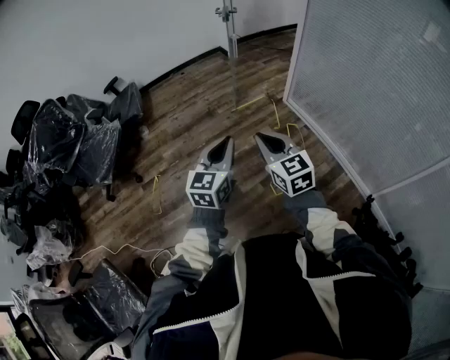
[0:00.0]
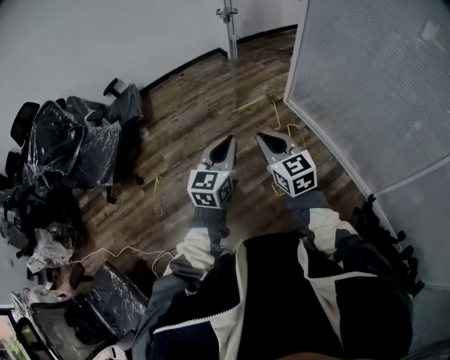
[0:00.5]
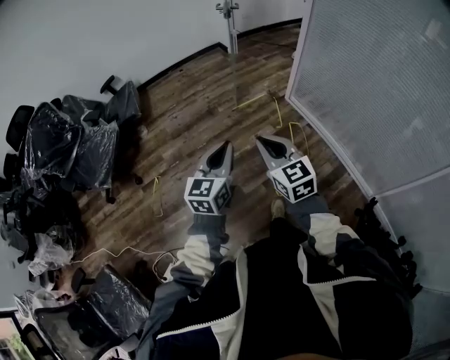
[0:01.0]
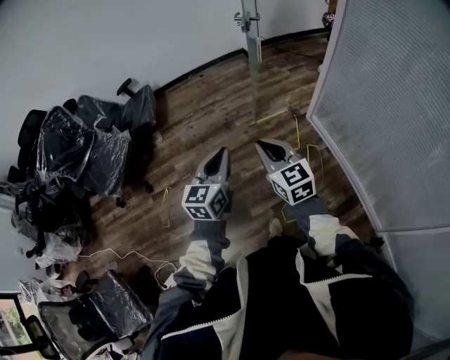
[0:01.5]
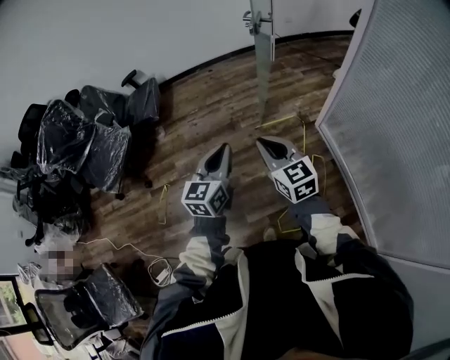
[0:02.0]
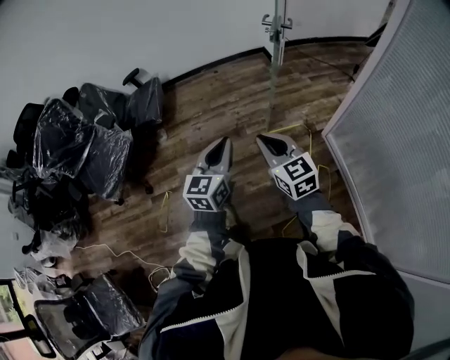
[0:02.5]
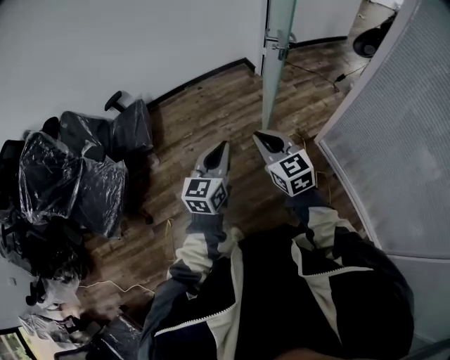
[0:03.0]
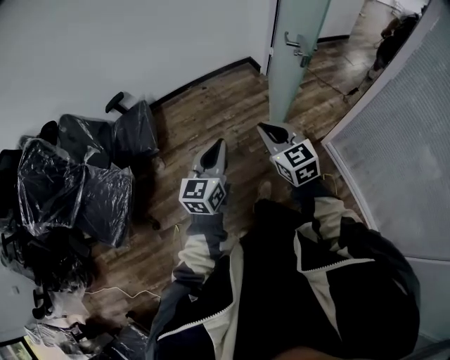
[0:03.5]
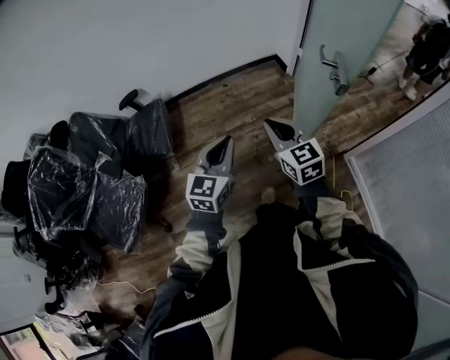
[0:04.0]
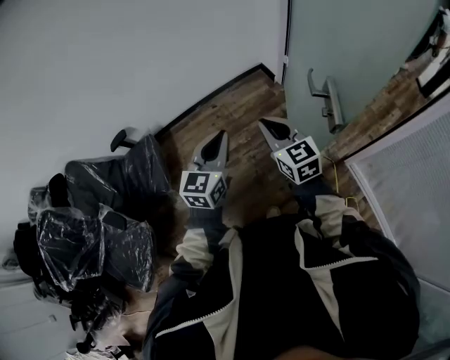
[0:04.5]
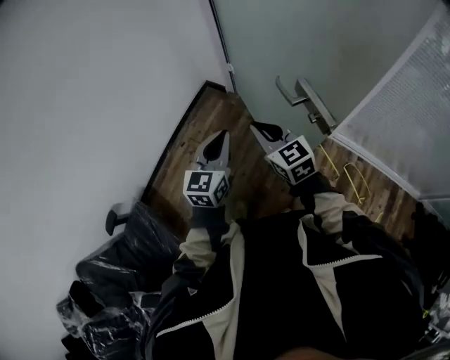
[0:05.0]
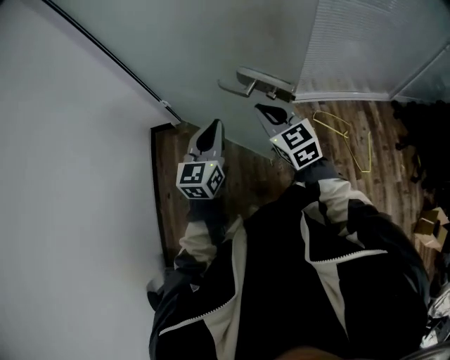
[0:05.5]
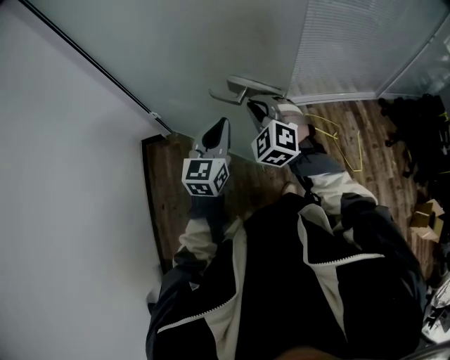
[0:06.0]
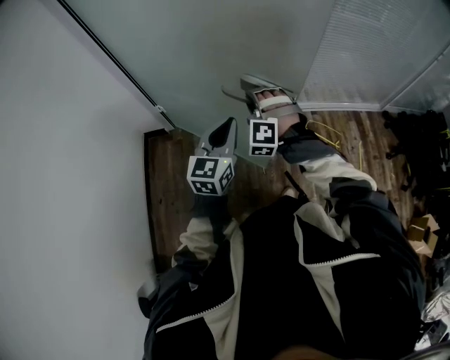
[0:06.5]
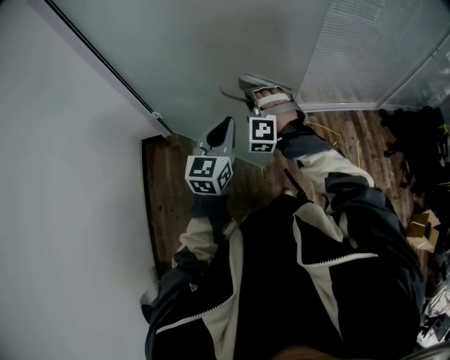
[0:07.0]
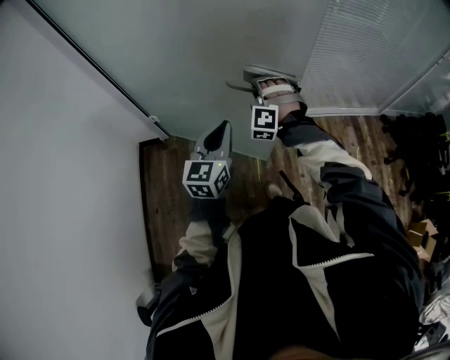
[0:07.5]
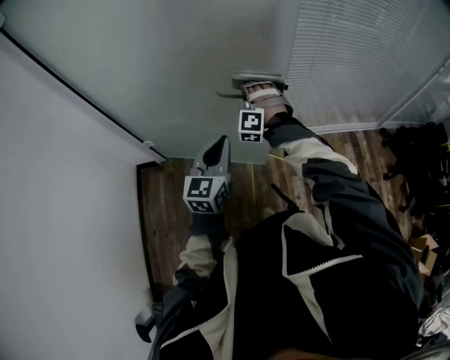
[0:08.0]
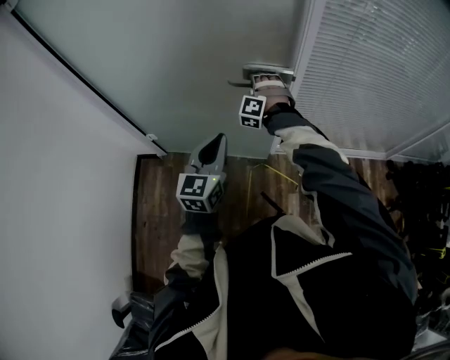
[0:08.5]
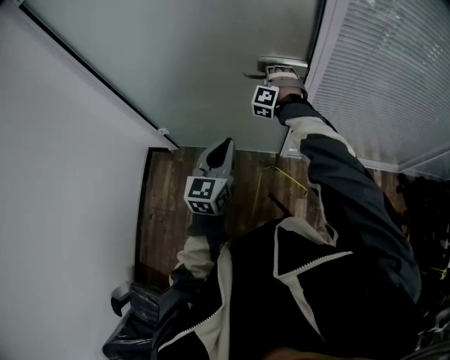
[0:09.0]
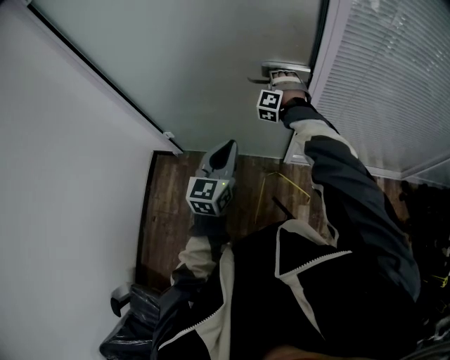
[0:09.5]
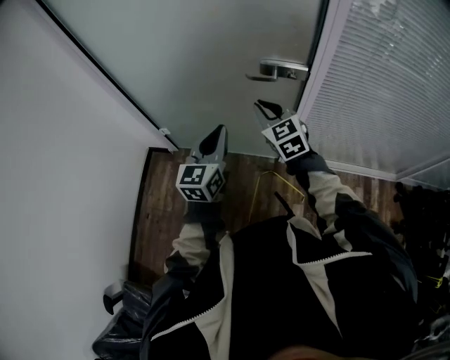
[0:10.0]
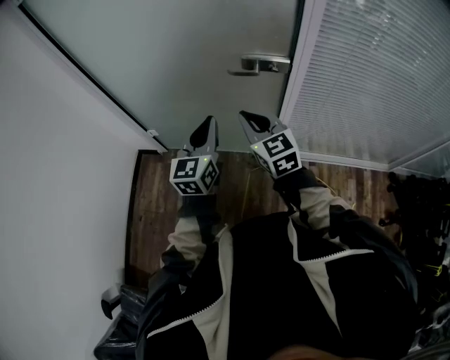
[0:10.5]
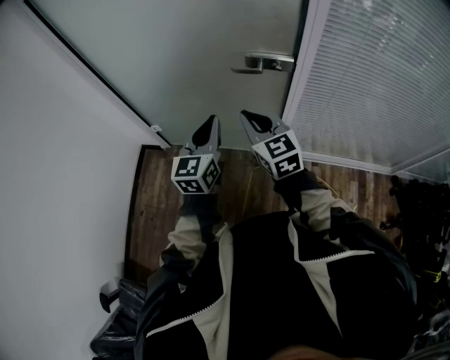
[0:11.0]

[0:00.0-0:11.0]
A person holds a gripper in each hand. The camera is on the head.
0:00.0 to 0:02.0: Both grippers move forward, about 30 cm.
0:02.0 to 0:03.5: Both grippers travel together forward and to the left, roughly 35 cm.
0:03.5 to 0:05.5: The left gripper changes place by approximately 50 cm, and rotates roughly 60 degrees. Meanwhile the right gripper ends up some 40 cm from where it was, and rotates about 60 degrees.
0:05.5 to 0:07.5: The right gripper is displaced forward by approximately 20 cm, rolls counterclockwise, seen from behind, by some 70 degrees, and opens its fingers. Meanwhile the left gripper goes some 10 cm forward and to the right.
0:07.5 to 0:09.0: The left gripper travels forward by roughly 15 cm, while the right gripper goes roughly 30 cm forward.
0:09.0 to 0:11.0: The right gripper ends up some 25 cm from where it was, rotates around the line of its fingers by roughly 70 degrees, clockwise from behind, and closes up.

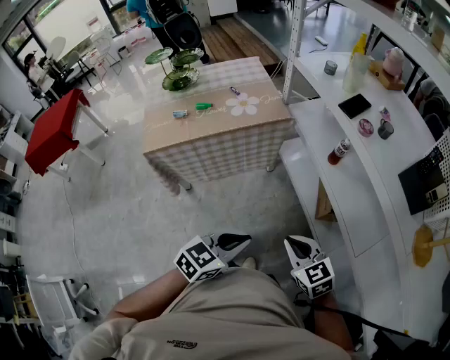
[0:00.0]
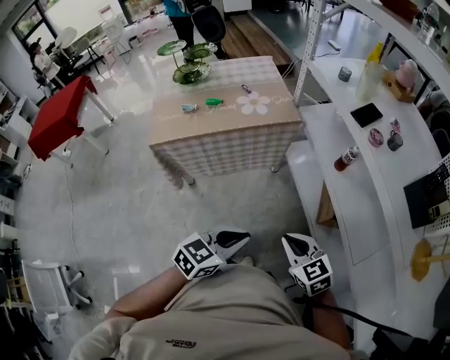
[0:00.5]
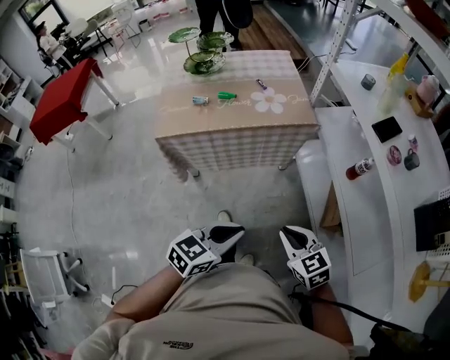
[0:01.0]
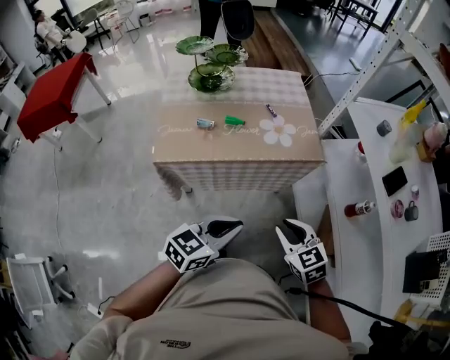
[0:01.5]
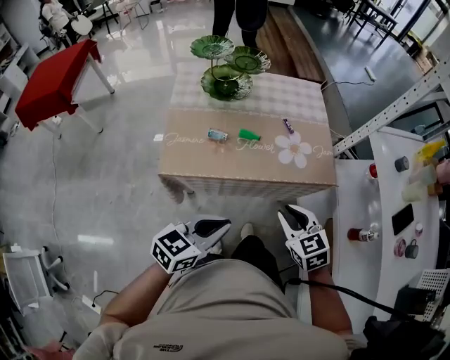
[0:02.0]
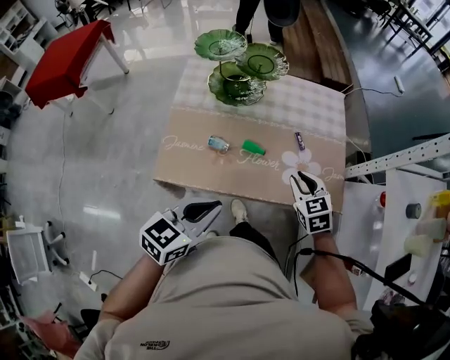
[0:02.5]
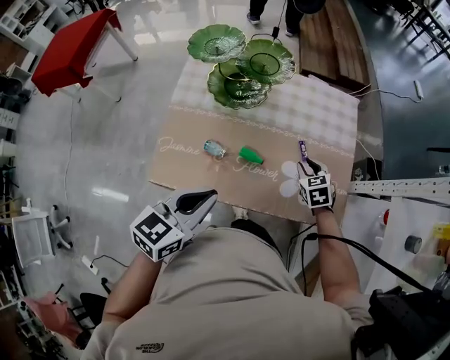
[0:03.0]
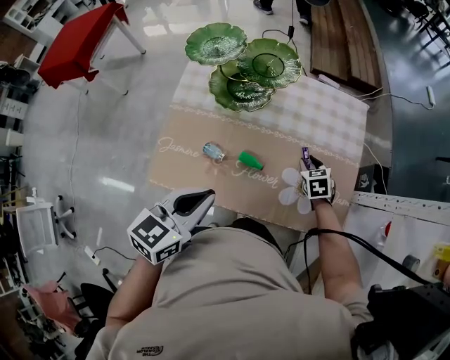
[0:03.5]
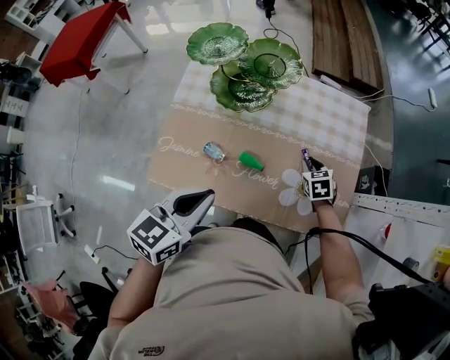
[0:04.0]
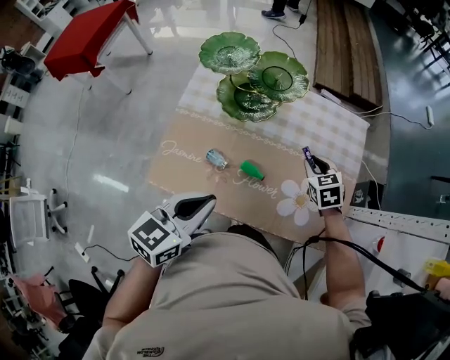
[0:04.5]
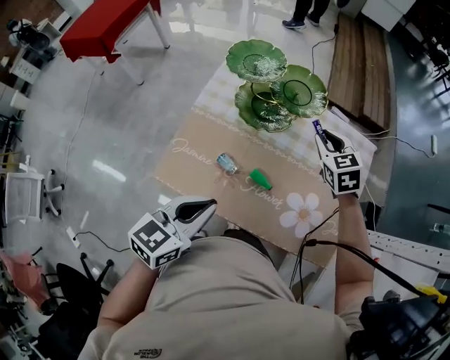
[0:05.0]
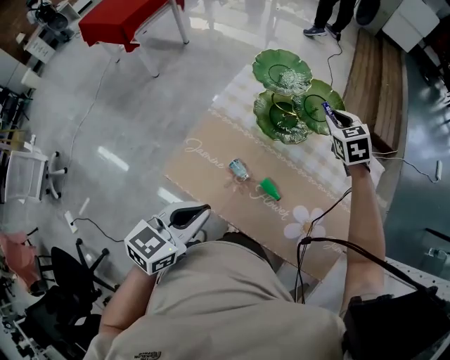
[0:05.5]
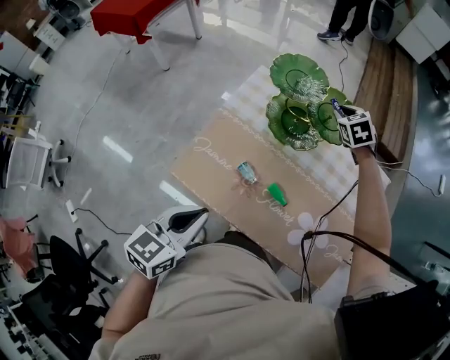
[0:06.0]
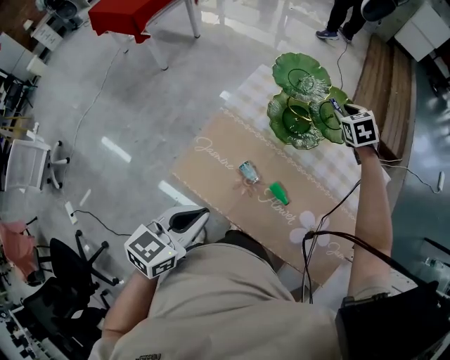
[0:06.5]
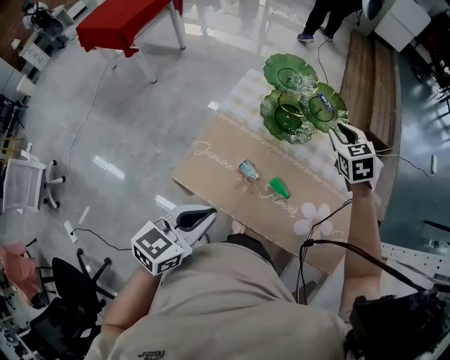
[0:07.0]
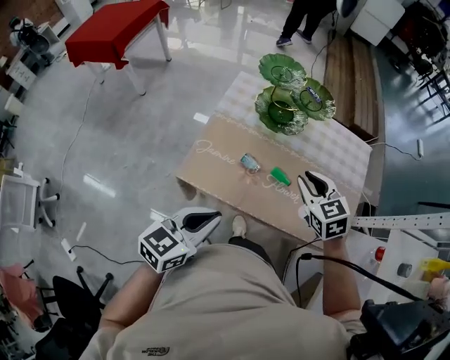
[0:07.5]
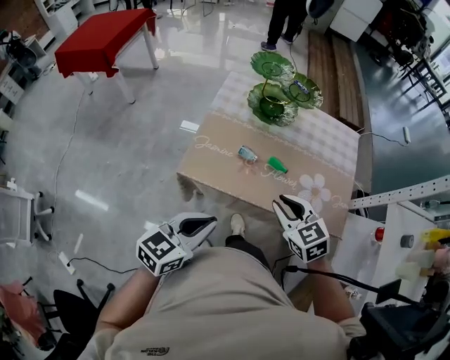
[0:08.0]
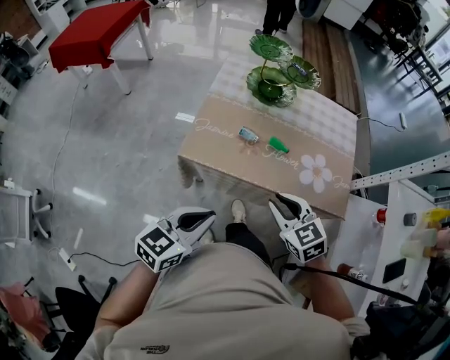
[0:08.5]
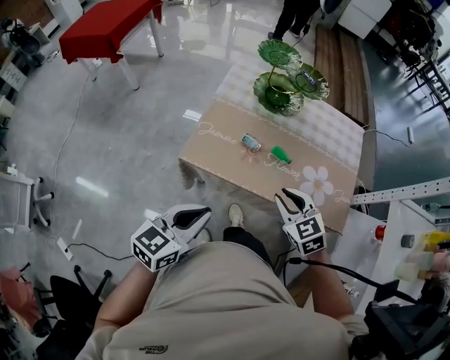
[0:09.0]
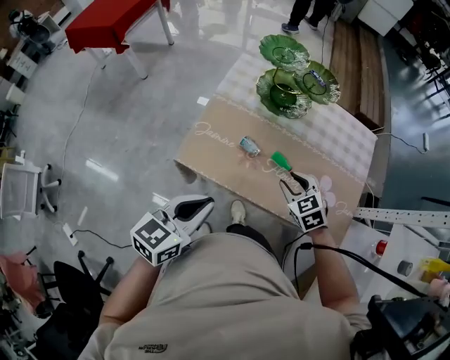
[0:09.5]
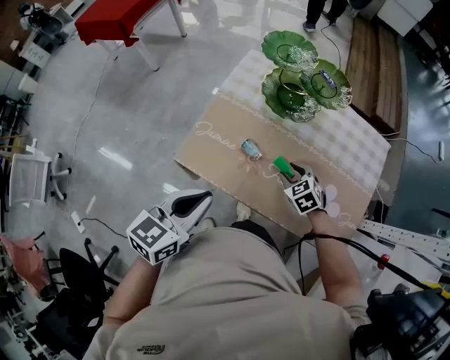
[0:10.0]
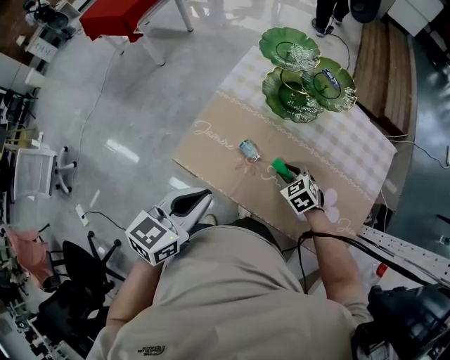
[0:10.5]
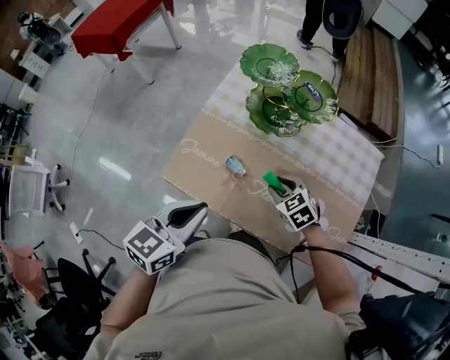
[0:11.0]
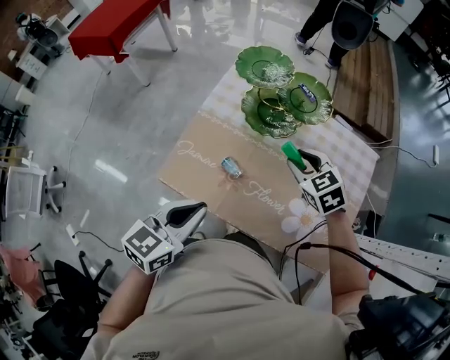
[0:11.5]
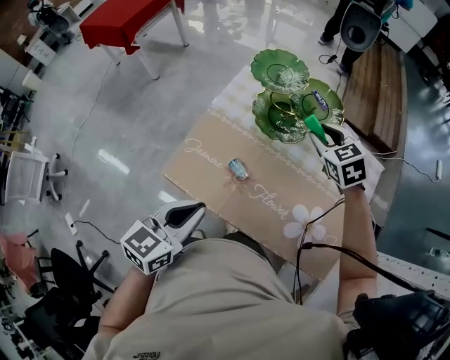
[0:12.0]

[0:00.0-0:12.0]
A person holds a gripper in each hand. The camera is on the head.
0:00.0 to 0:02.0: The right gripper is displaced forward and to the left by approximately 40 cm; the left gripper shifts about 40 cm to the left and forward, and swivels about 20 degrees.
0:02.0 to 0:04.0: The right gripper travels forward and downward by about 50 cm. Meanwhile the left gripper travels forward by about 25 cm, and turns by about 30 degrees.
0:04.0 to 0:06.0: The left gripper travels to the left by approximately 10 cm. Meanwhile the right gripper shifts some 40 cm forward, to the left and upward, and rotates approximately 30 degrees.
0:06.0 to 0:08.0: The right gripper heads backward, covering about 50 cm, and rotates roughly 20 degrees. The left gripper is displaced backward by approximately 15 cm, and turns by some 20 degrees.
0:08.0 to 0:10.0: The right gripper shifts some 25 cm downward and forward, and swivels approximately 20 degrees. Meanwhile the left gripper shifts roughly 10 cm forward.
0:10.0 to 0:12.0: The right gripper is displaced upward and forward by approximately 25 cm.

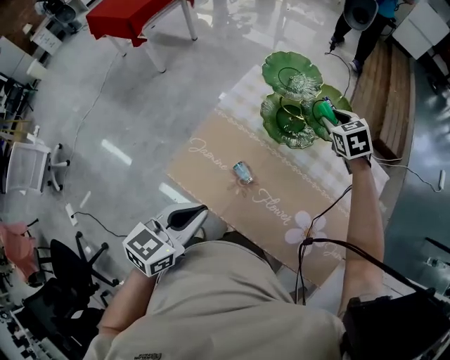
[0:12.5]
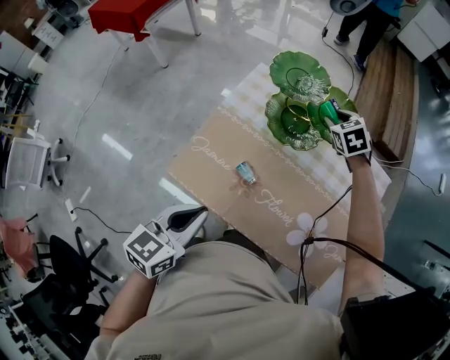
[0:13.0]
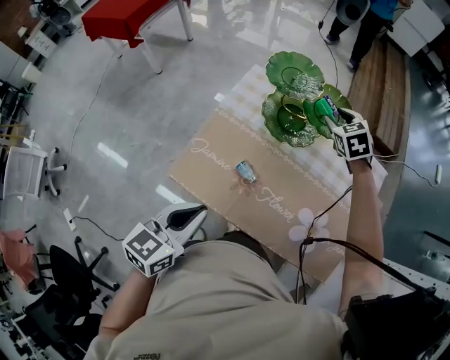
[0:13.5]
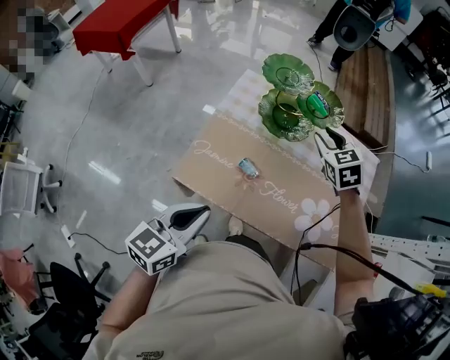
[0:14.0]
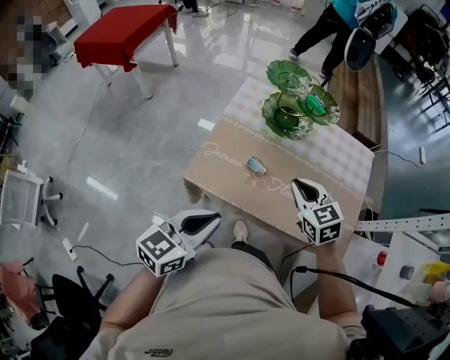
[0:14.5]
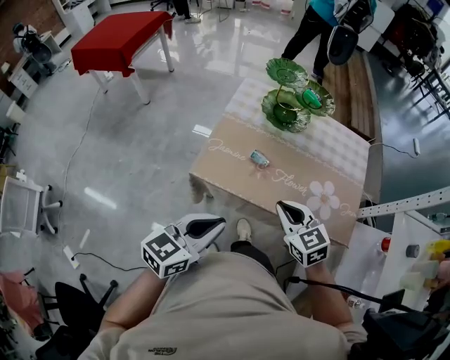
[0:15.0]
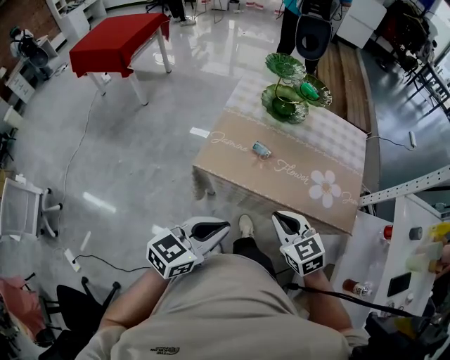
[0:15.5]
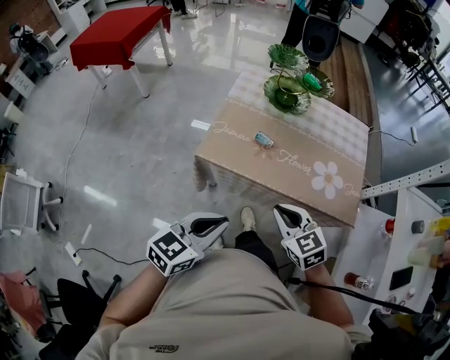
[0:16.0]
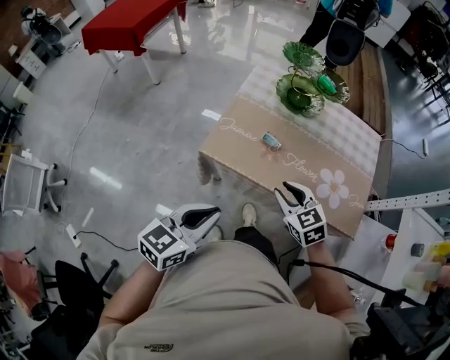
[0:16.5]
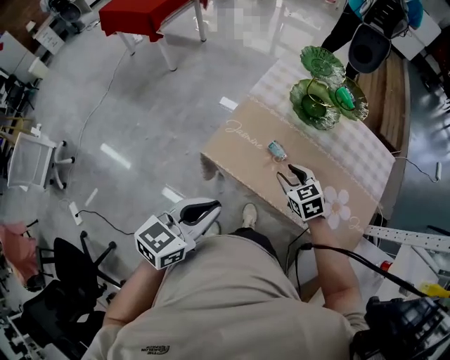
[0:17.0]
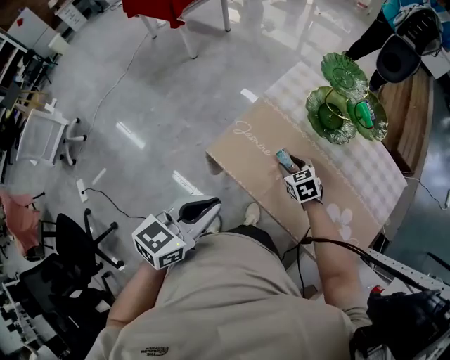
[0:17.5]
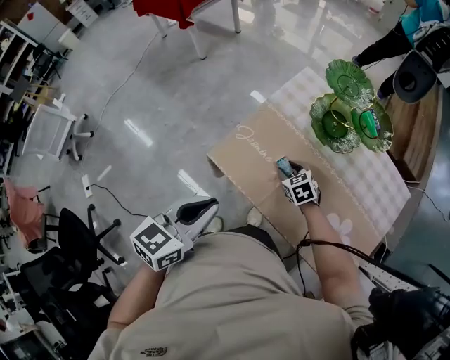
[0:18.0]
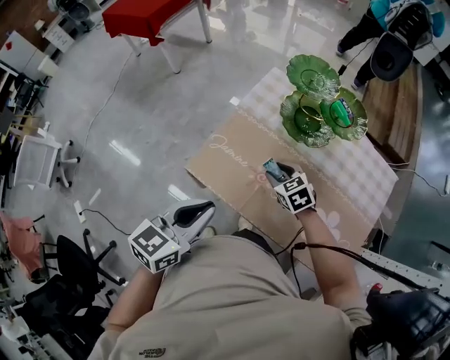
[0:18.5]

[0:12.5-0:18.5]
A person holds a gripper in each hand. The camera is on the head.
0:12.5 to 0:14.5: The left gripper travels backward by roughly 10 cm. Meanwhile the right gripper goes approximately 35 cm backward, and closes.
0:14.5 to 0:16.5: The right gripper is displaced backward, to the left and downward by approximately 15 cm, and opens its fingers. Meanwhile the left gripper is displaced backward by about 10 cm.
0:16.5 to 0:18.5: The right gripper goes approximately 25 cm forward and downward. Meanwhile the left gripper heads forward and to the right, covering approximately 15 cm.
